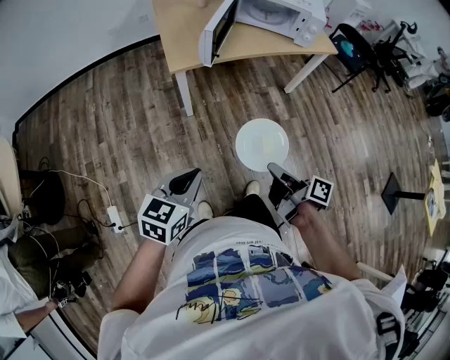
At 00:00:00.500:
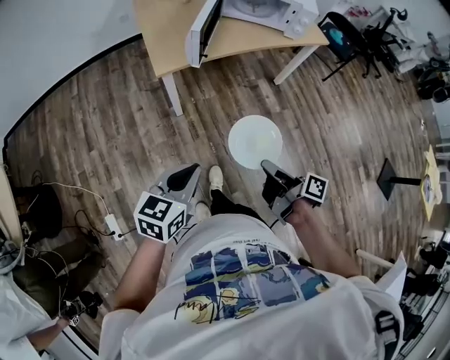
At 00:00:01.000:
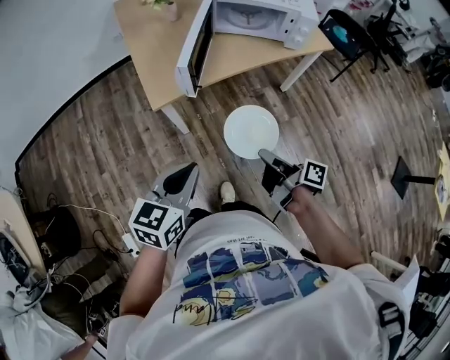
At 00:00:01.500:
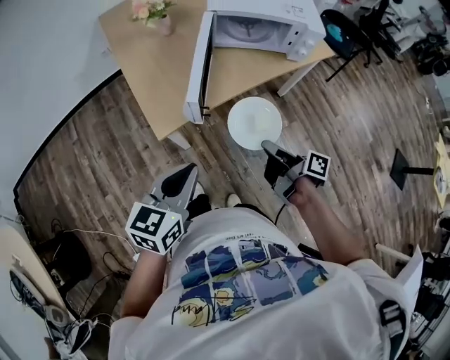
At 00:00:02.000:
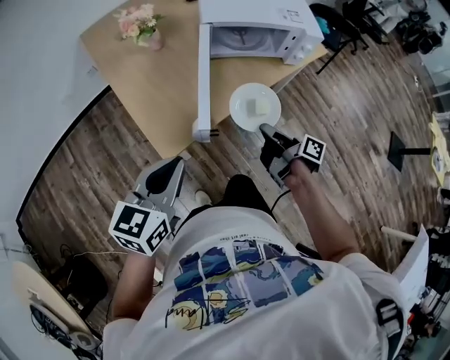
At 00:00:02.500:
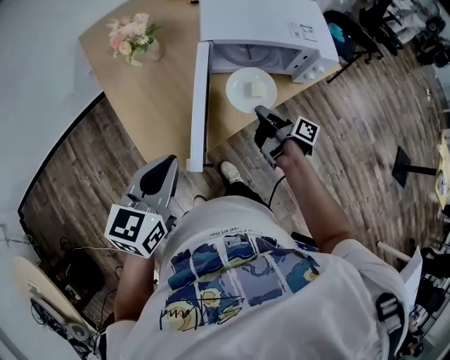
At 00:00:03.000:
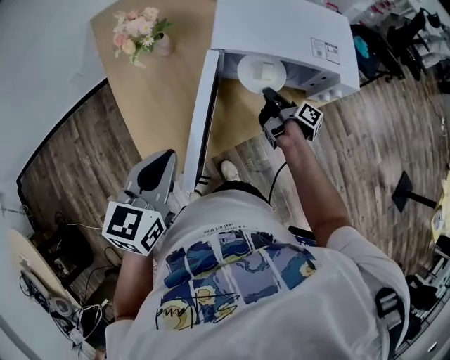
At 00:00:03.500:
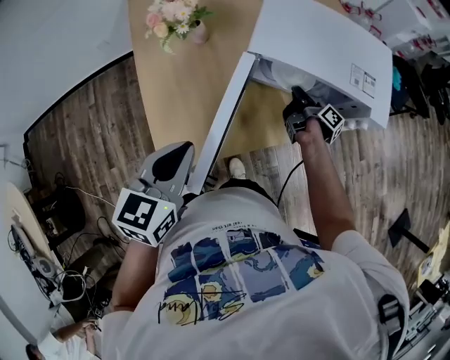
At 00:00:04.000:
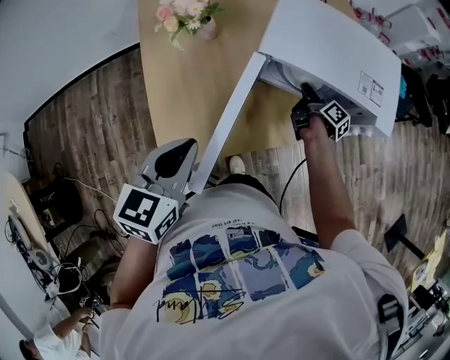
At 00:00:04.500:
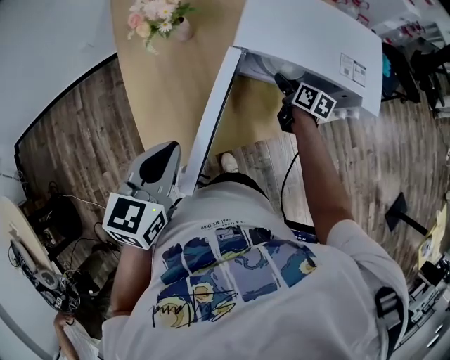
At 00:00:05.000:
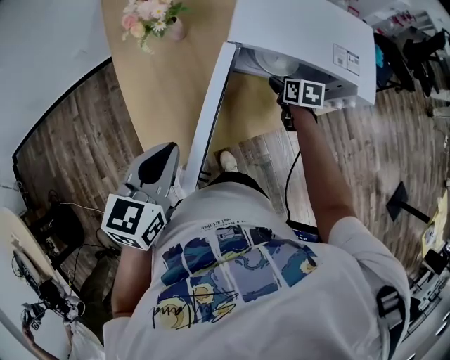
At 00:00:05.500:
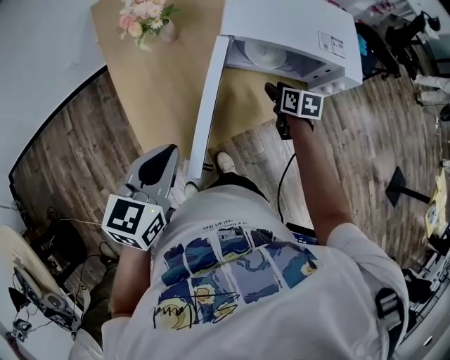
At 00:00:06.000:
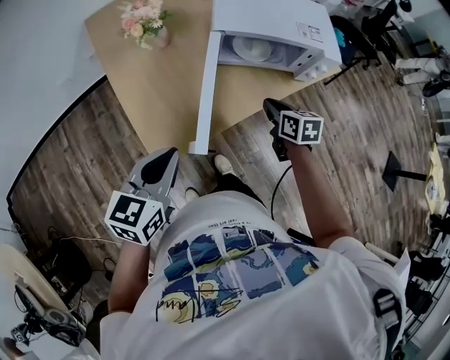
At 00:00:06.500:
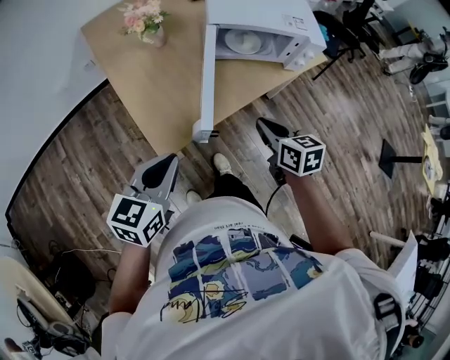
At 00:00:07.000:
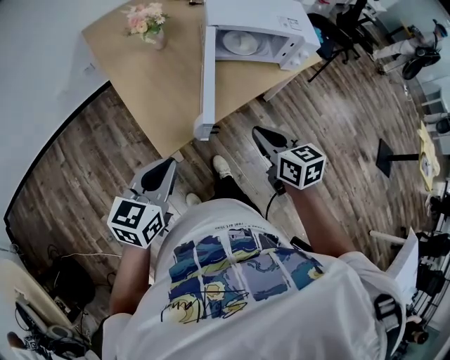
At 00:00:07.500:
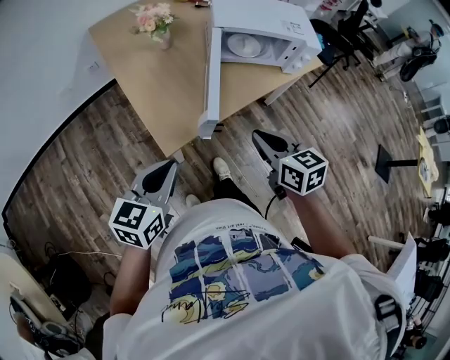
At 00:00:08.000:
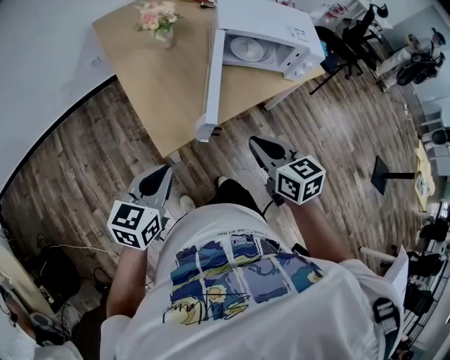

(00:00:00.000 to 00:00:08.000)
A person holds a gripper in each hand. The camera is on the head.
00:00:00.000 - 00:00:02.000: The pair of grippers is taken forward, roughly 40 cm. The right gripper rotates some 20 degrees.
00:00:02.000 - 00:00:04.000: The left gripper goes some 20 cm forward, and changes its angle by about 20 degrees. The right gripper moves forward, about 35 cm.
00:00:04.000 - 00:00:06.000: The right gripper is displaced backward and upward by some 25 cm, rotates around the line of its fingers by about 50 degrees, counterclockwise from behind, and opens, then closes again; the left gripper is displaced backward by some 10 cm.
00:00:06.000 - 00:00:08.000: The right gripper shifts roughly 25 cm backward, upward and to the left. Meanwhile the left gripper goes roughly 15 cm backward and to the left.

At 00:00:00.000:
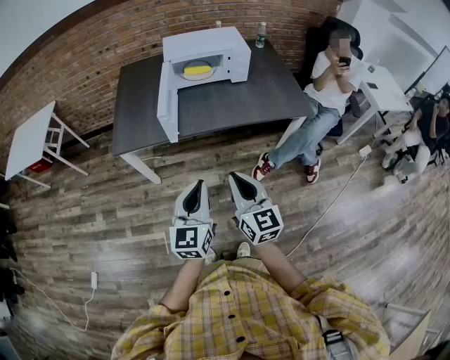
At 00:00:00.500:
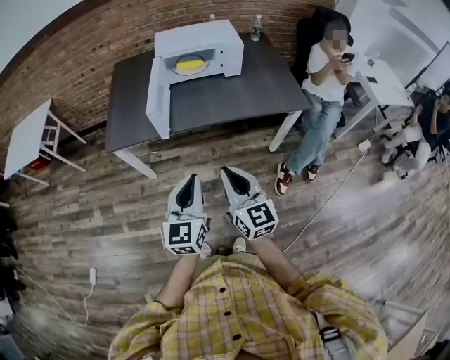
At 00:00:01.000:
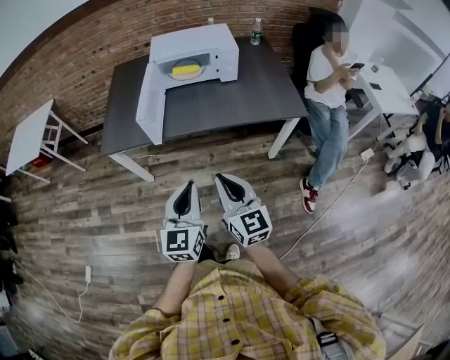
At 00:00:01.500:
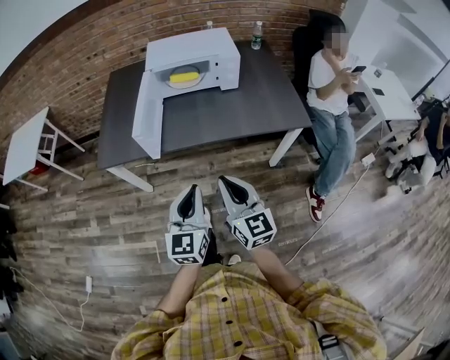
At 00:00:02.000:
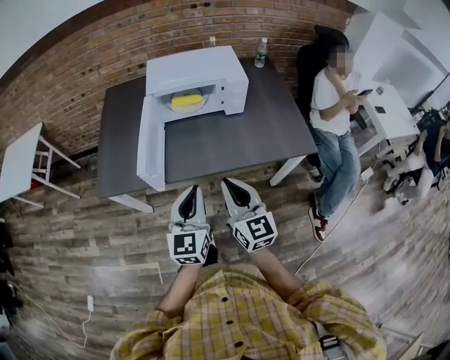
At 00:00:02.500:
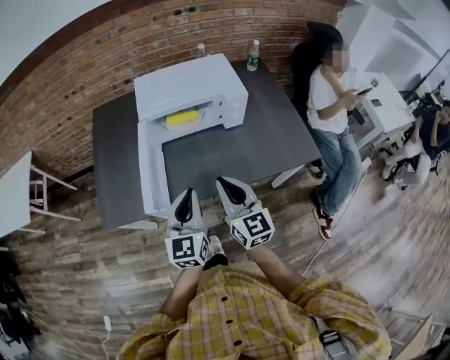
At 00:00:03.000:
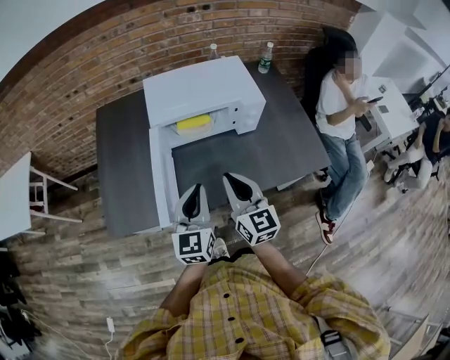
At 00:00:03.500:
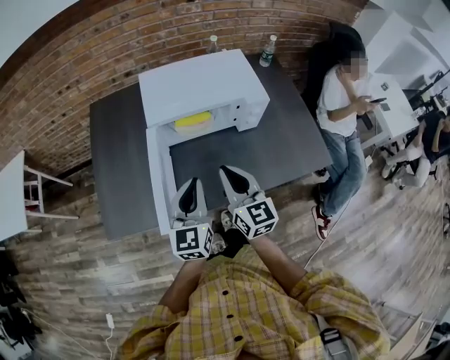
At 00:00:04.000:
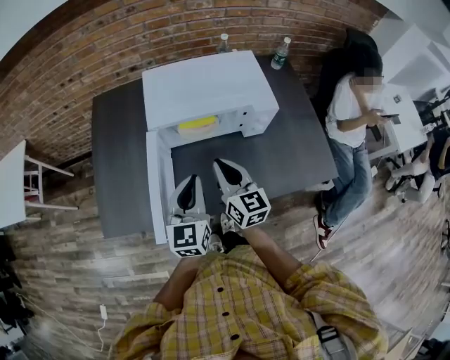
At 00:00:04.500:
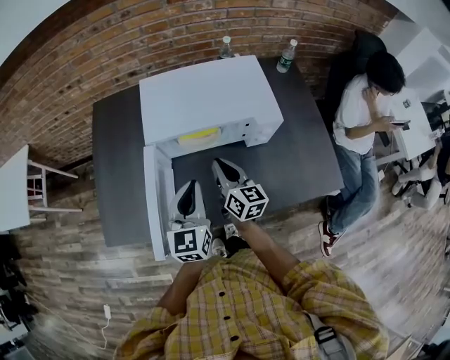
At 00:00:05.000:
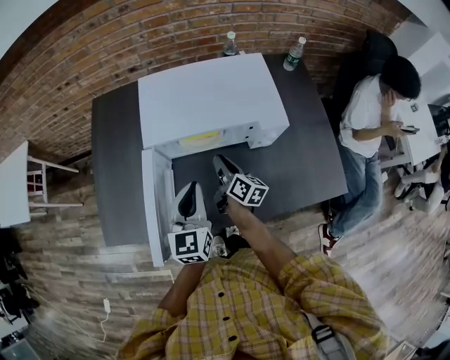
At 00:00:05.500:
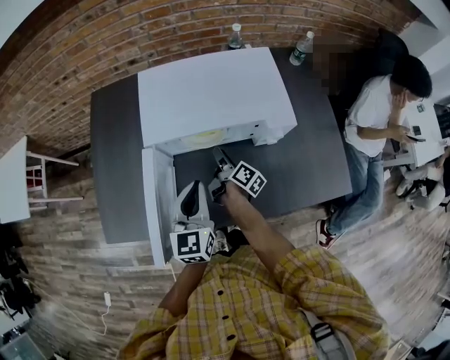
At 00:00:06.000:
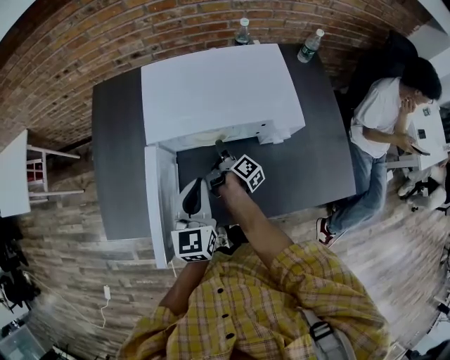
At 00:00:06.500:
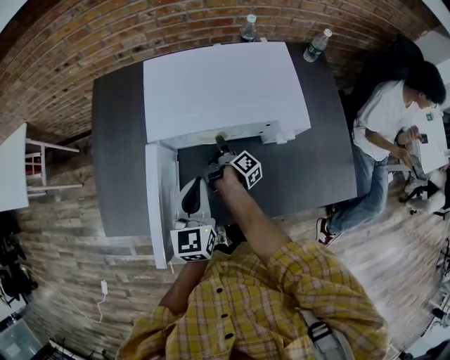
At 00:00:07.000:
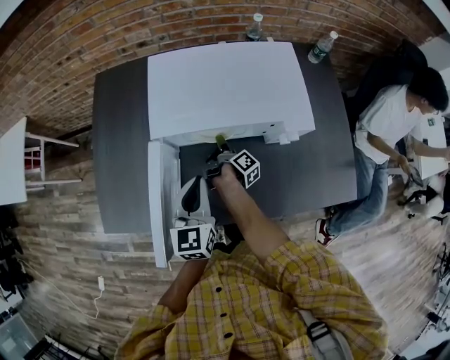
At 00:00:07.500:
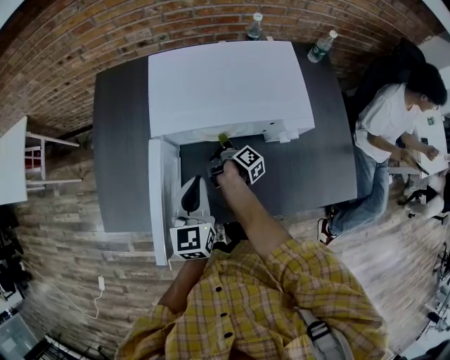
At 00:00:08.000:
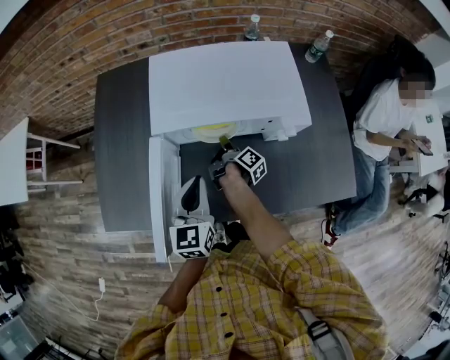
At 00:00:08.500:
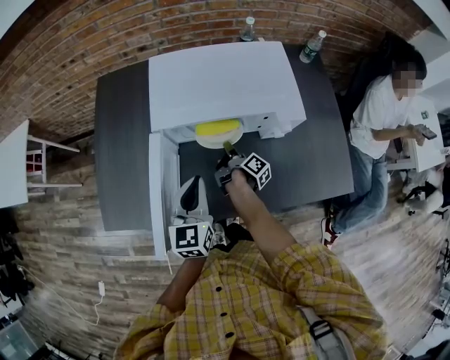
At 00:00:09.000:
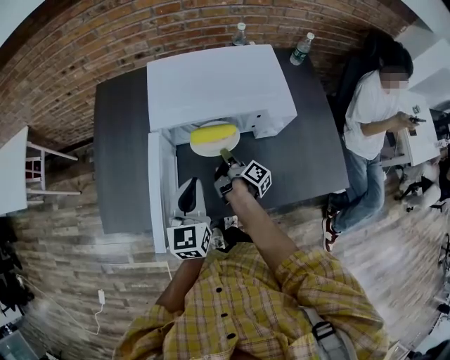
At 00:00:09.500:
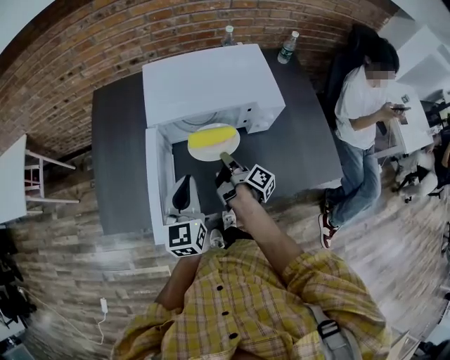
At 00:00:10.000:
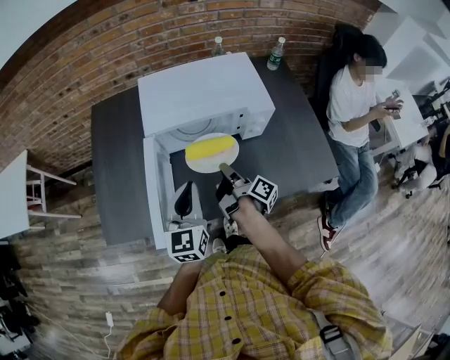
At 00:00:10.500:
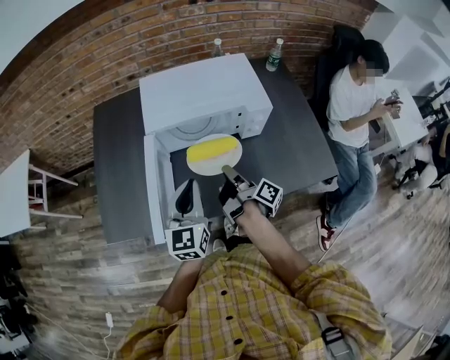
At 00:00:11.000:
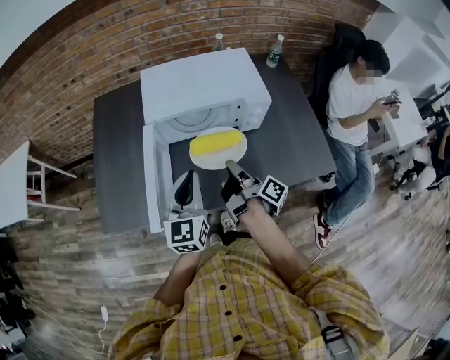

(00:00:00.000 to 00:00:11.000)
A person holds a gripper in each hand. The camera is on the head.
00:00:00.000 - 00:00:02.000: The two grippers go approximately 25 cm forward.
00:00:02.000 - 00:00:03.500: The two grippers go roughly 20 cm forward.
00:00:03.500 - 00:00:05.500: The left gripper is displaced forward and downward by about 15 cm. The right gripper shifts approximately 30 cm downward and forward, rolls clockwise, seen from behind, by some 70 degrees, and opens its fingers.
00:00:05.500 - 00:00:07.500: The right gripper heads downward, covering some 5 cm.
00:00:07.500 - 00:00:09.000: The right gripper heads backward and upward, covering approximately 10 cm.
00:00:09.000 - 00:00:11.000: The right gripper moves upward and backward, about 20 cm. The left gripper is displaced backward and upward by about 10 cm.

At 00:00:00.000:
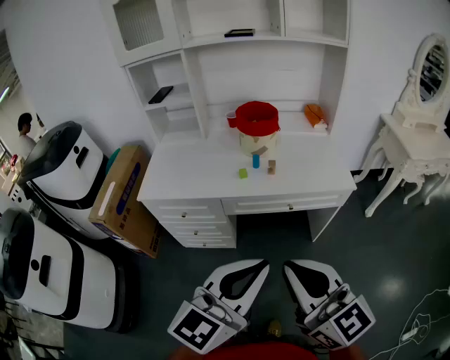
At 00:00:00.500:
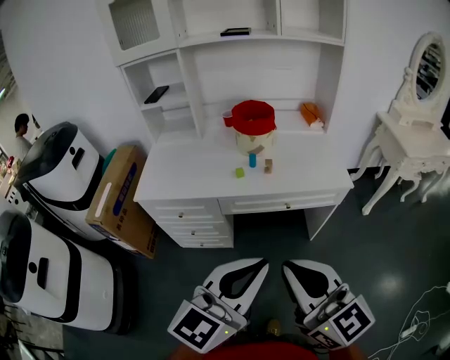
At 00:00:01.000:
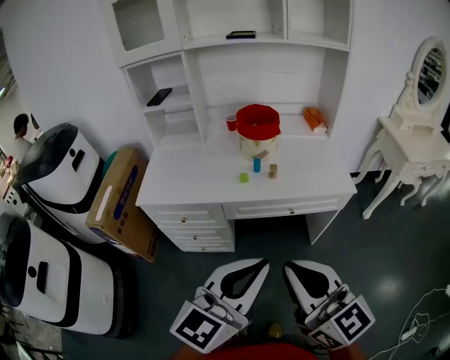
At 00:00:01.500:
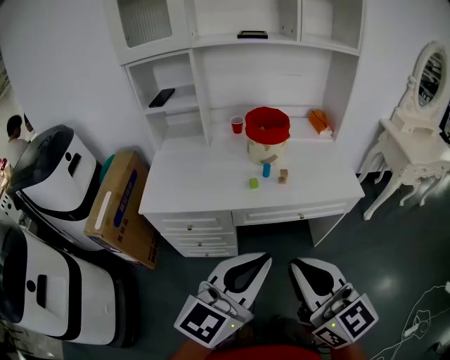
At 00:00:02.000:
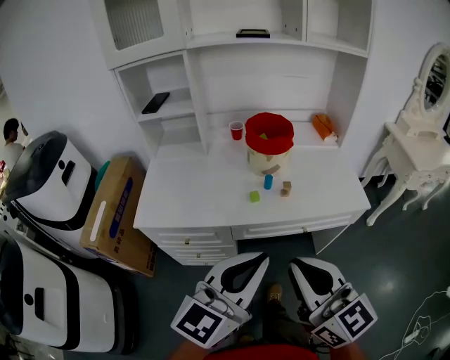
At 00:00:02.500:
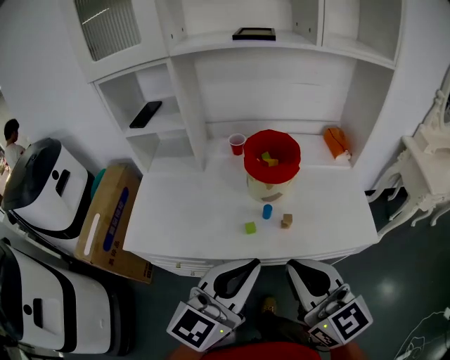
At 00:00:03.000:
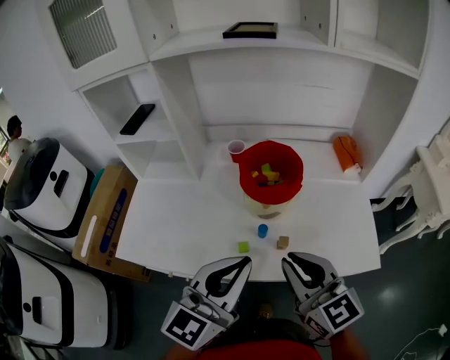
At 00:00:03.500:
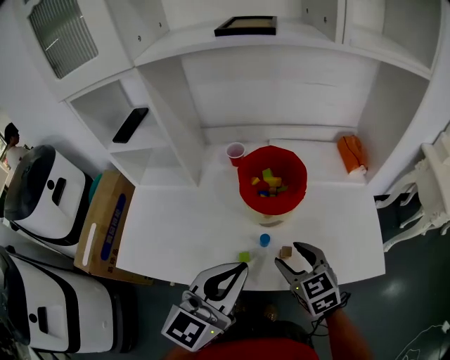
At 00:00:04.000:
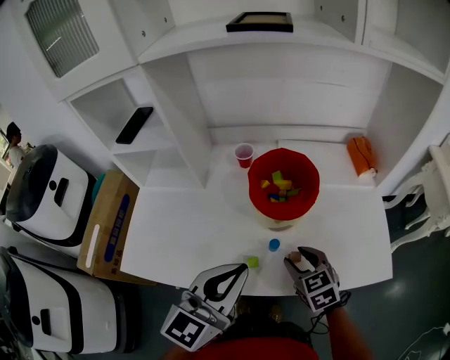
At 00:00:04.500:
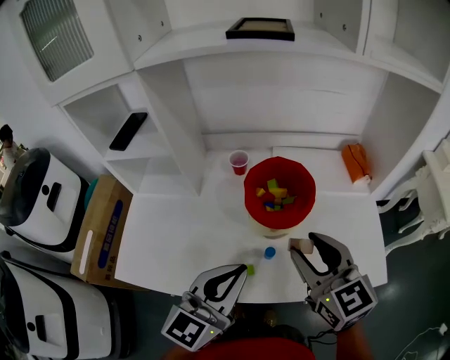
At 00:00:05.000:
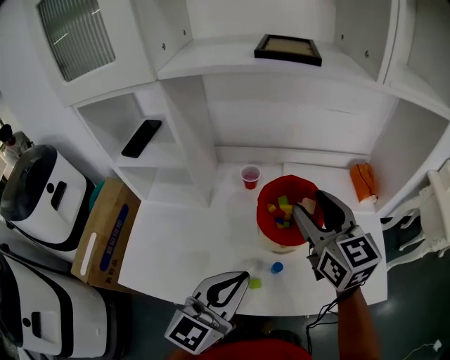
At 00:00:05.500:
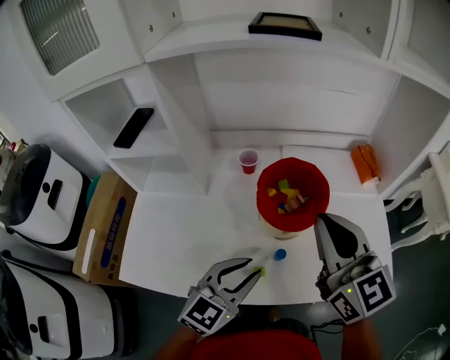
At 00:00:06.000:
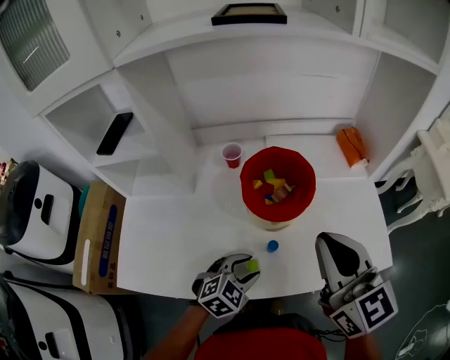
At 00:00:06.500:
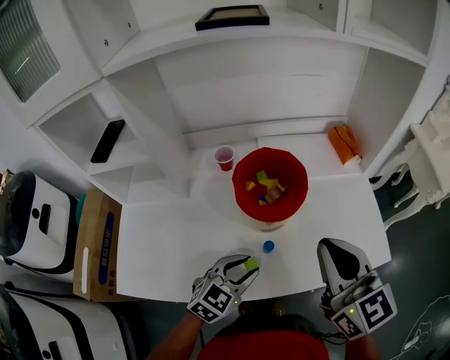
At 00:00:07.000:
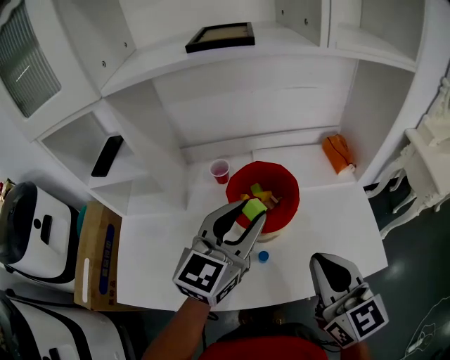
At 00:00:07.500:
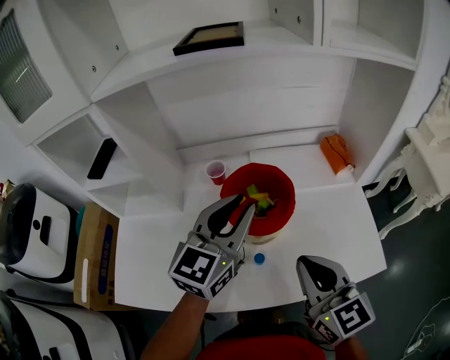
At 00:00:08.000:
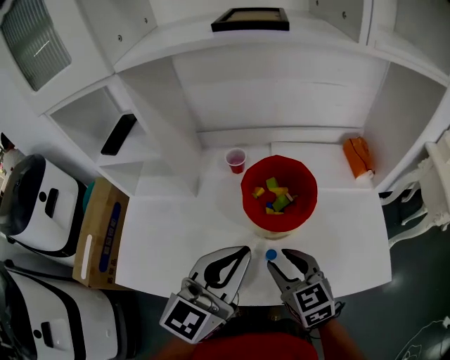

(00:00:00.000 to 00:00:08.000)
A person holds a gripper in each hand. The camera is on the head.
00:00:00.000 - 00:00:02.000: The grippers both shift forward and to the left by about 15 cm.
00:00:02.000 - 00:00:04.000: The right gripper is displaced forward and downward by approximately 40 cm, angles its fingers downward, by about 40 degrees, and opens its fingers, while the left gripper goes about 25 cm forward.
00:00:04.000 - 00:00:06.000: The left gripper is displaced downward by some 20 cm, tilts its fingers roughly 40 degrees downward, and opens up, while the right gripper is displaced upward by some 25 cm, angles its fingers upward, by roughly 30 degrees, and closes its fingers.
00:00:06.000 - 00:00:08.000: The left gripper shifts about 25 cm upward, tips its fingers upward by some 40 degrees, and closes. The right gripper travels downward by roughly 15 cm, changes its angle by approximately 30 degrees, and opens up.
